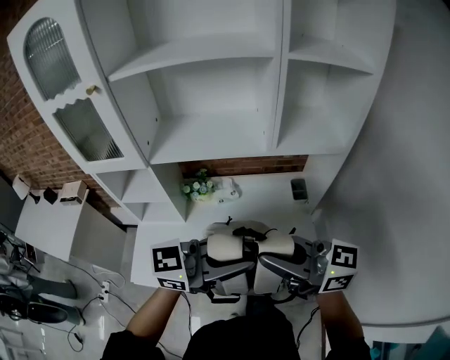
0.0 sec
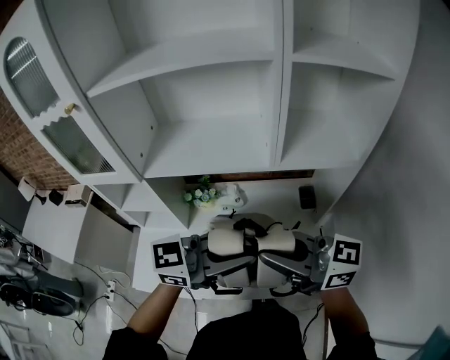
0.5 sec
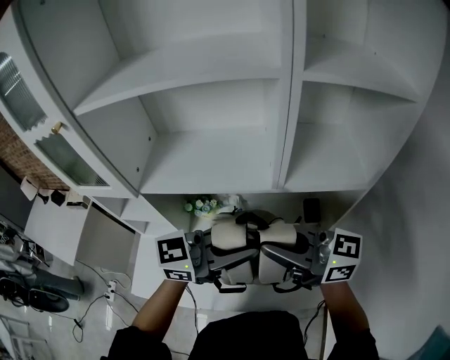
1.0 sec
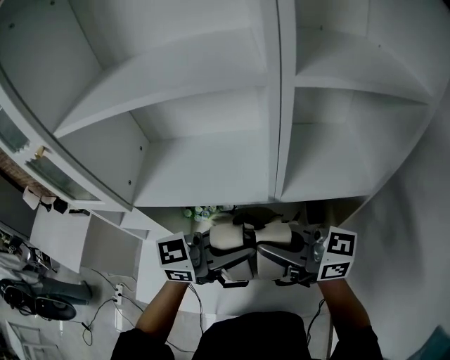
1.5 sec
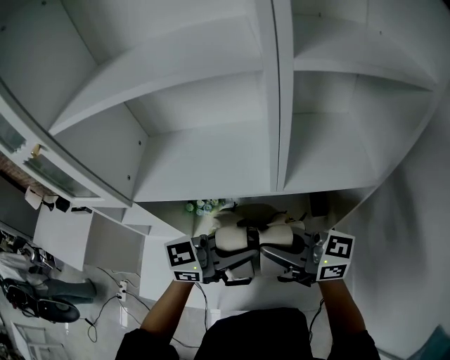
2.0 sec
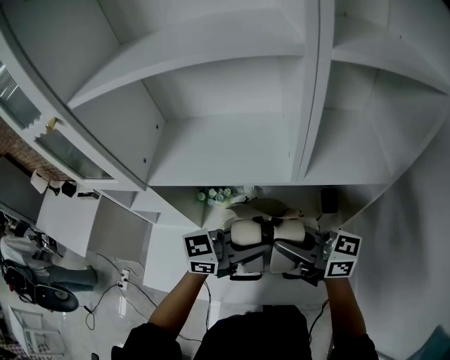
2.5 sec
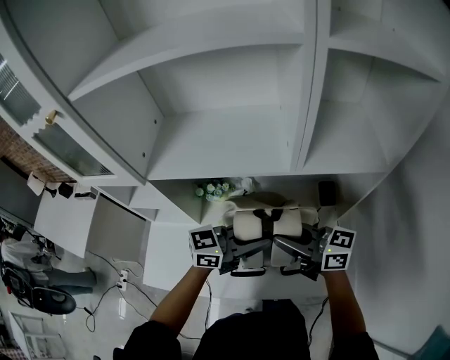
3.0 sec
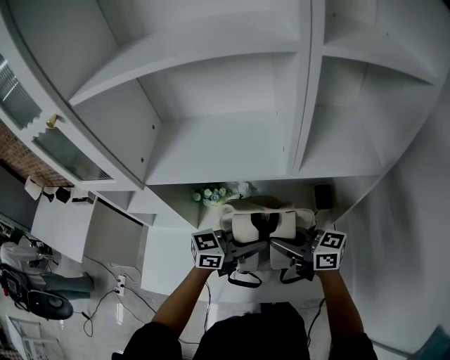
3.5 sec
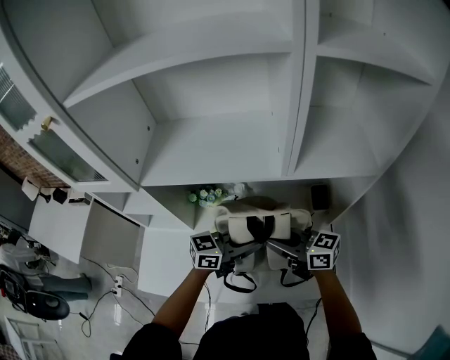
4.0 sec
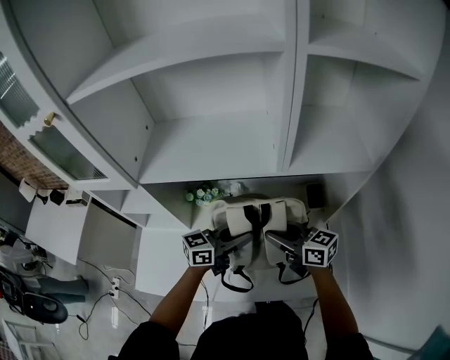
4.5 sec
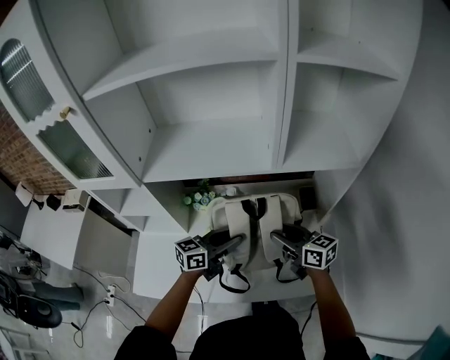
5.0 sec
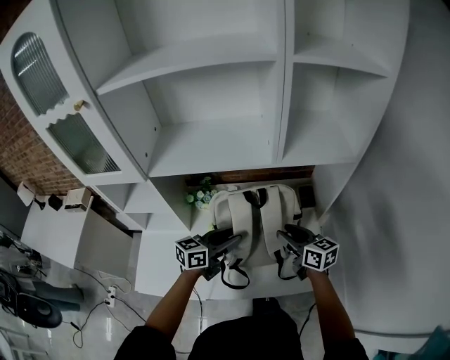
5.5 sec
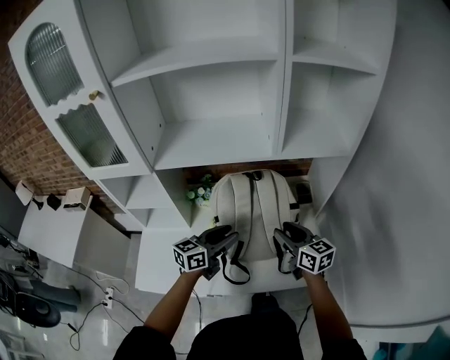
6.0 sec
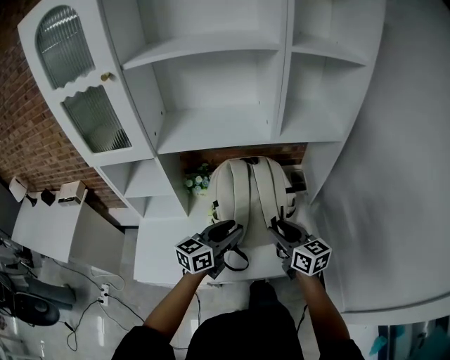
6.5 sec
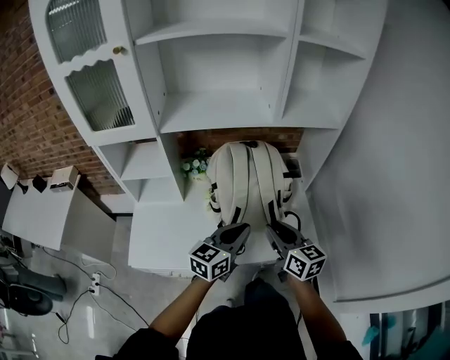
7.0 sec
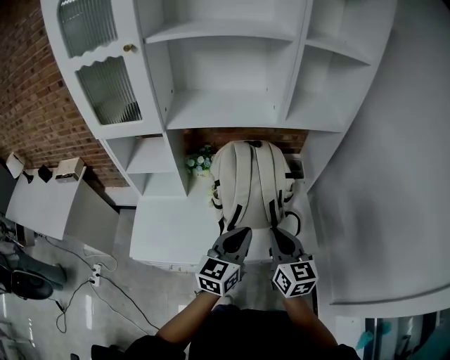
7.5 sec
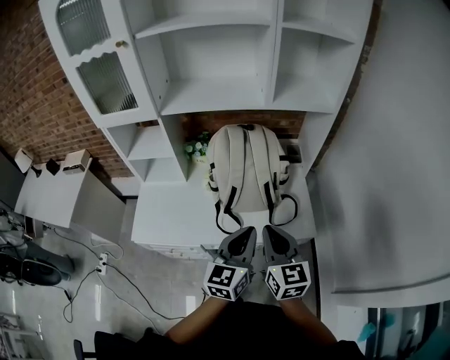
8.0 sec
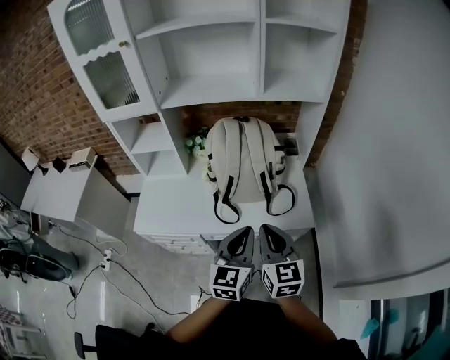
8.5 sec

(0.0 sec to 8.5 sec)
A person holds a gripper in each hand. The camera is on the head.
0.0 sec - 2.0 sec: The left gripper moves roughly 25 cm, while the right gripper moves approximately 20 cm.
2.0 sec - 4.0 sec: The two grippers go approximately 15 cm downward.
4.0 sec - 6.5 sec: The left gripper ends up roughly 15 cm from where it was, changes its angle by some 20 degrees, and opens its fingers. Meanwhile the right gripper ends up approximately 15 cm from where it was, rotates approximately 40 degrees, and opens.
6.5 sec - 8.5 sec: The right gripper shifts about 25 cm backward, and closes. The left gripper moves backward and to the right, approximately 25 cm, turns by some 30 degrees, and closes.

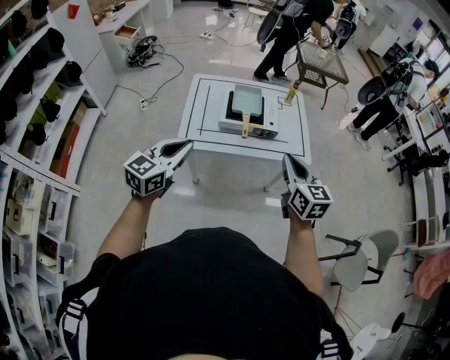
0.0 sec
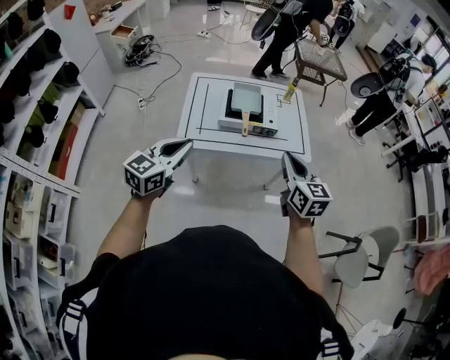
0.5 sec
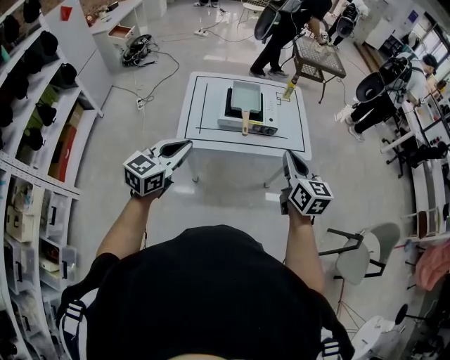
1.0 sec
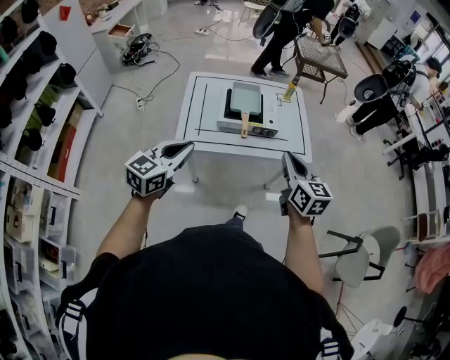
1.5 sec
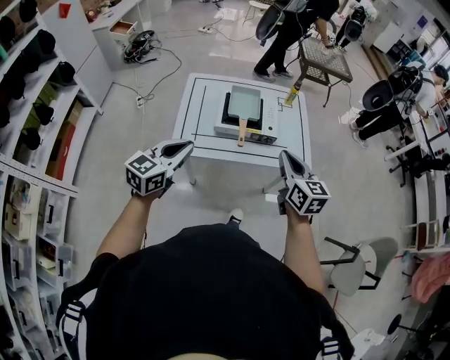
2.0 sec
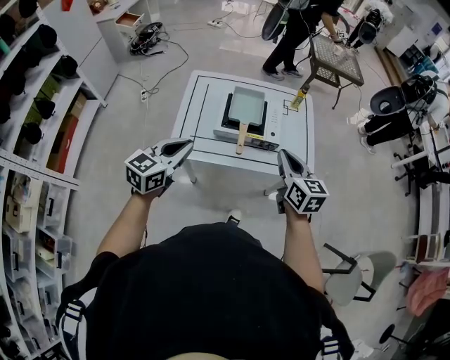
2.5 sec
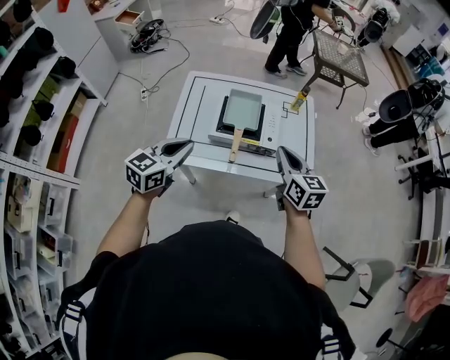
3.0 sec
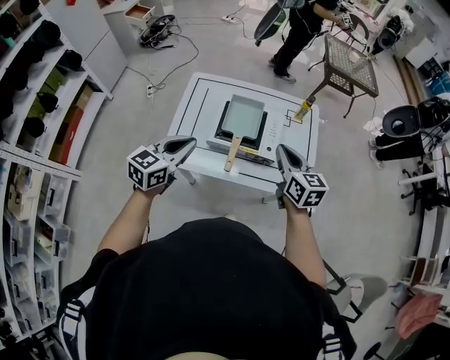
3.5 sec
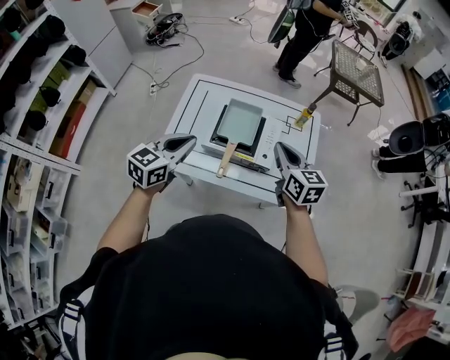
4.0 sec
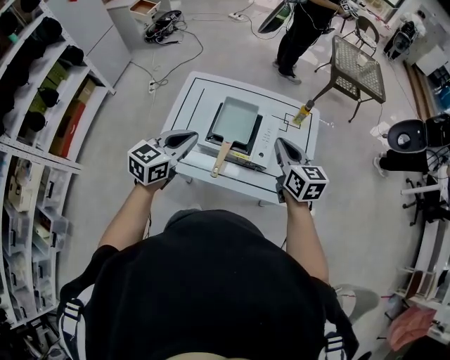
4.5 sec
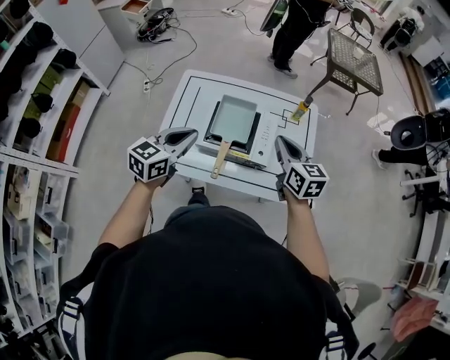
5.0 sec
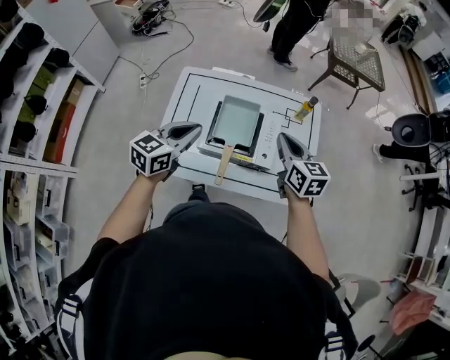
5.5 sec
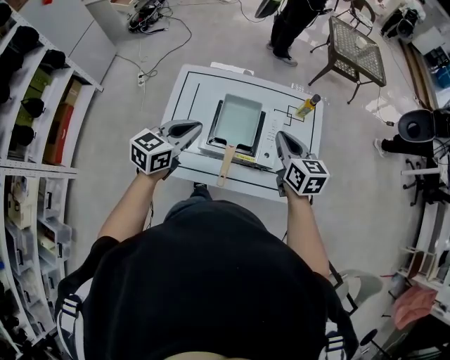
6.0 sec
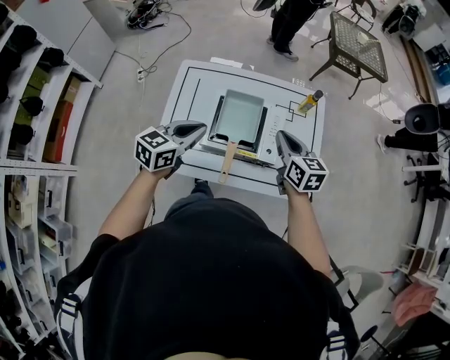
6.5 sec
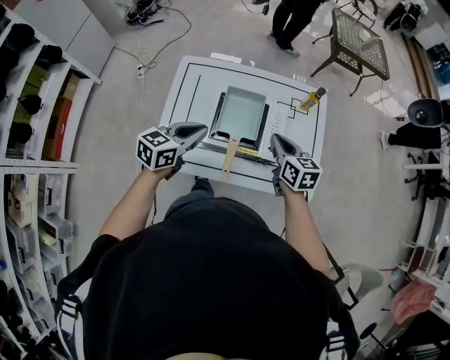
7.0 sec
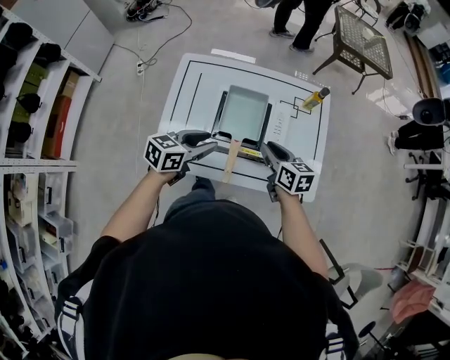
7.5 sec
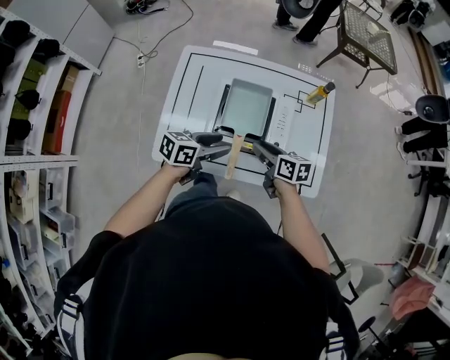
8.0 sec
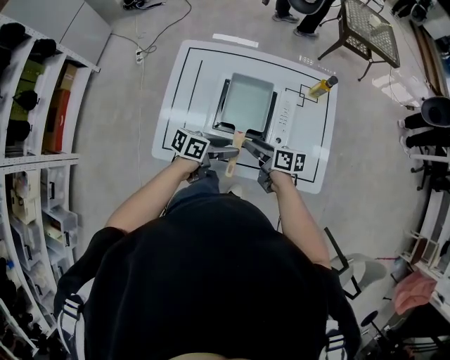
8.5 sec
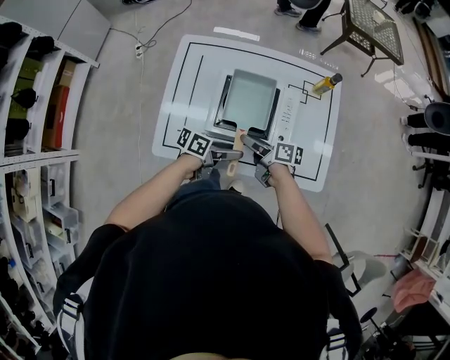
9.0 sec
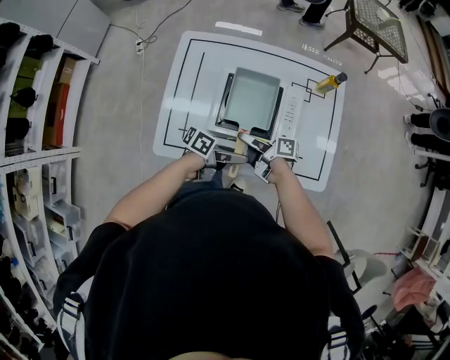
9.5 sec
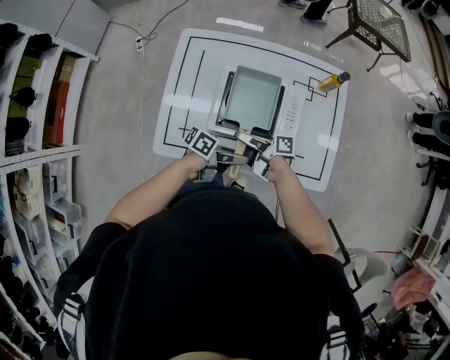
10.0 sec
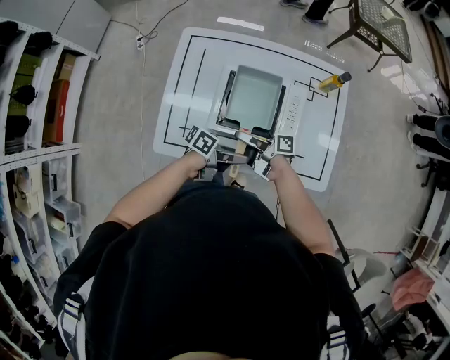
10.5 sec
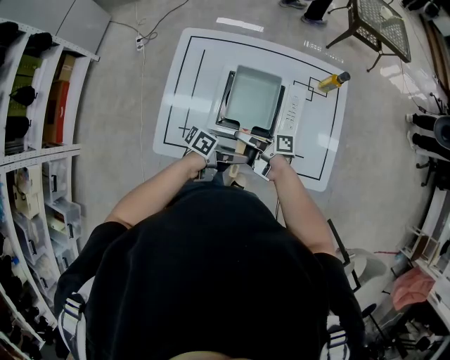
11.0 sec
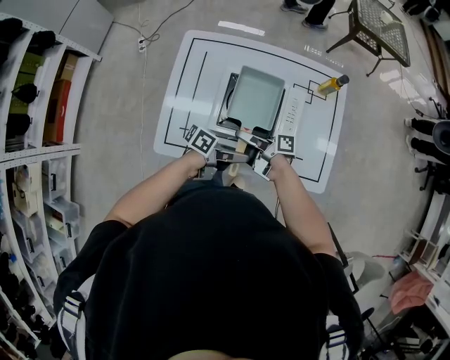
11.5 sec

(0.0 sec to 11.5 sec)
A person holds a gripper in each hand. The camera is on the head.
0.0 sec - 2.0 sec: Both grippers move forward, about 10 cm.
2.0 sec - 4.0 sec: Both grippers travel together forward, roughly 20 cm.
4.0 sec - 6.0 sec: Both grippers move forward, approximately 10 cm.
6.0 sec - 7.5 sec: The two grippers go some 10 cm downward. The left gripper opens; the right gripper opens its fingers.
7.5 sec - 9.5 sec: Both grippers move downward, approximately 10 cm. The left gripper changes its angle by about 50 degrees, and opens its fingers, while the right gripper twists roughly 50 degrees clockwise, seen from behind, and opens its fingers.
9.5 sec - 11.5 sec: The right gripper closes. Meanwhile the left gripper closes.

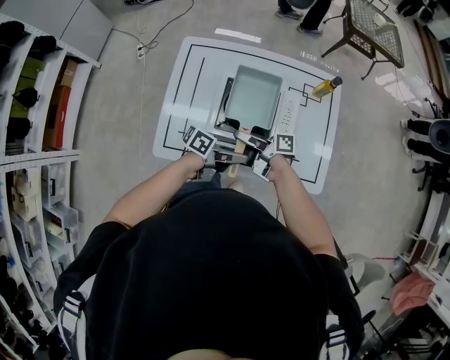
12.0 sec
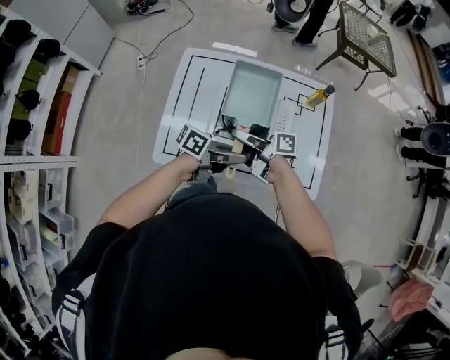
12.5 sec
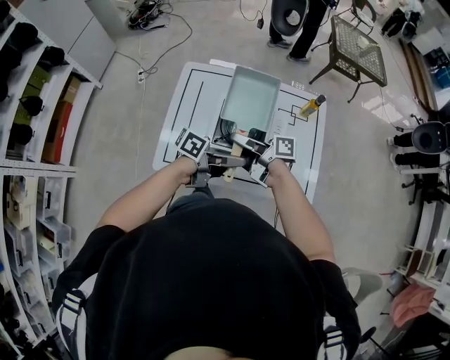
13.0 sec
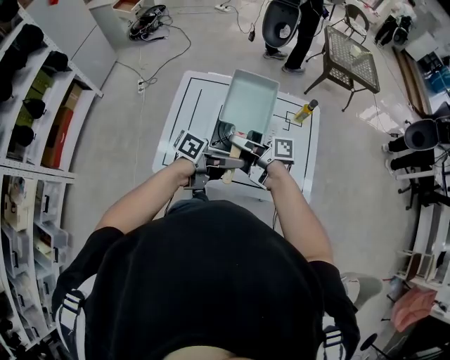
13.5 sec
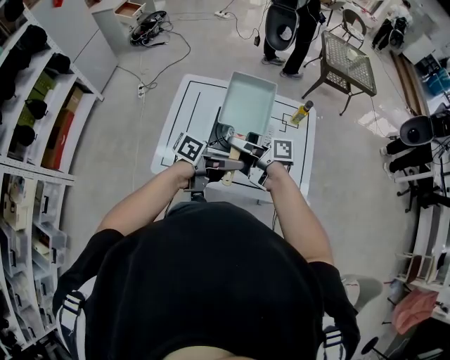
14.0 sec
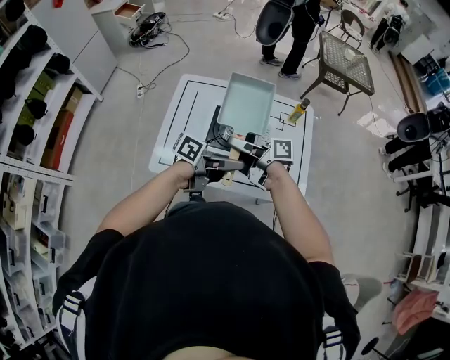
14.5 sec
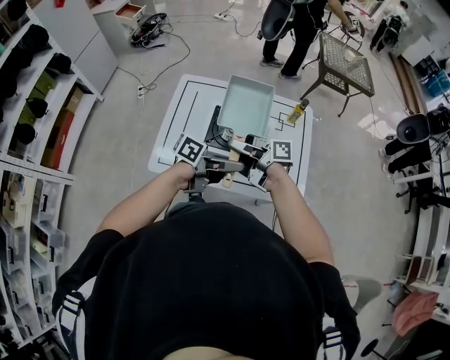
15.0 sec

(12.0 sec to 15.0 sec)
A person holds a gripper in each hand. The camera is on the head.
12.0 sec - 13.5 sec: The two grippers go roughly 15 cm upward.
13.5 sec - 15.0 sec: There are only small adjustments of the grippers.

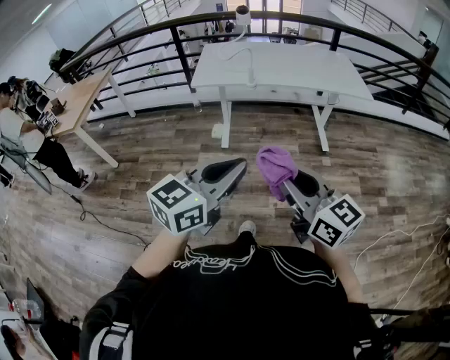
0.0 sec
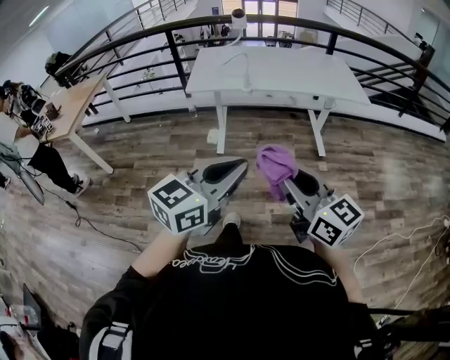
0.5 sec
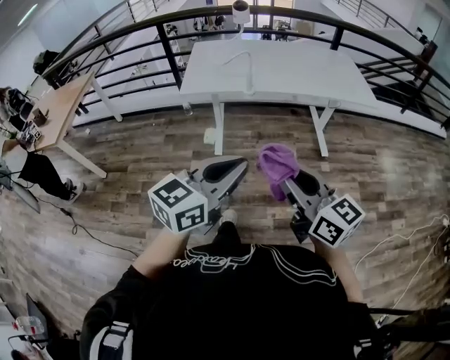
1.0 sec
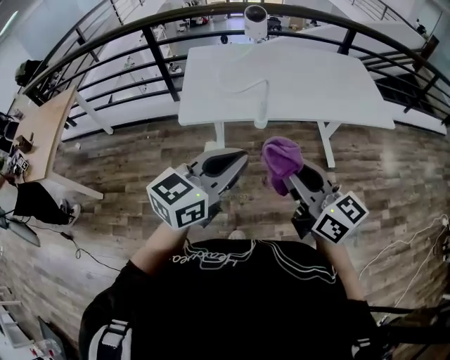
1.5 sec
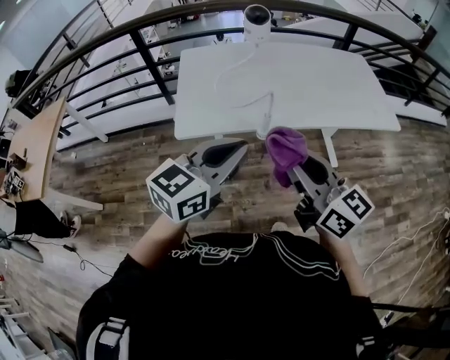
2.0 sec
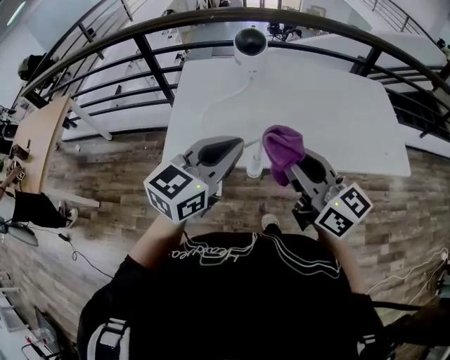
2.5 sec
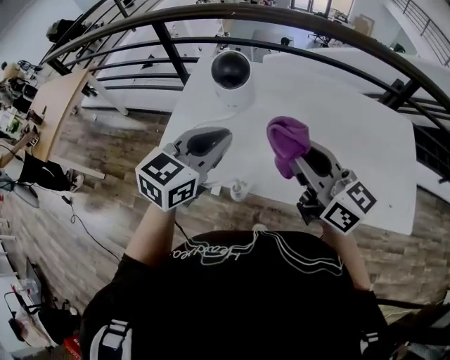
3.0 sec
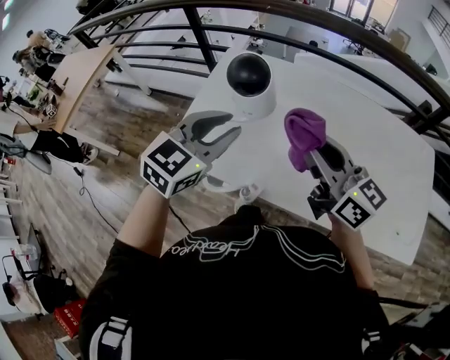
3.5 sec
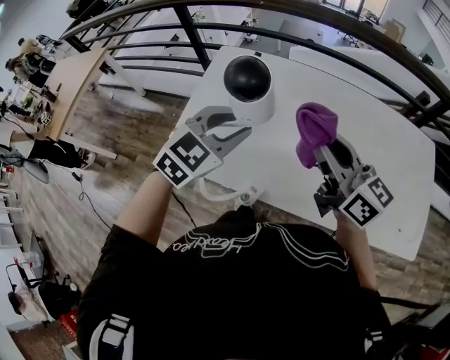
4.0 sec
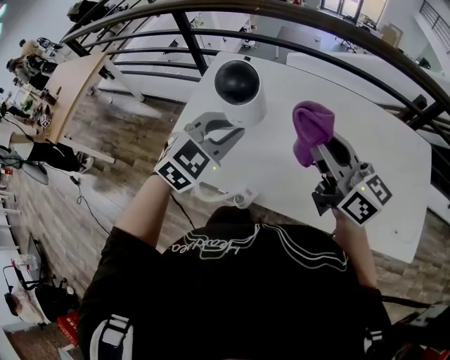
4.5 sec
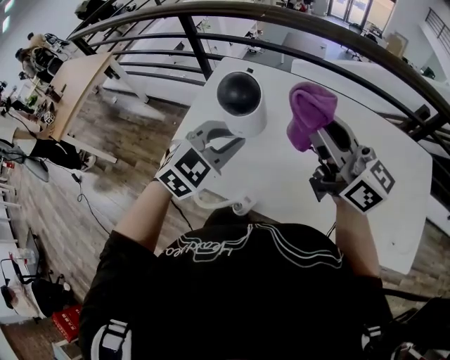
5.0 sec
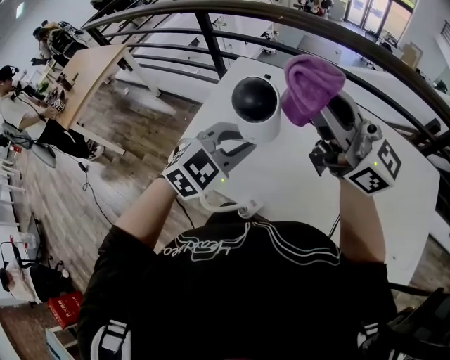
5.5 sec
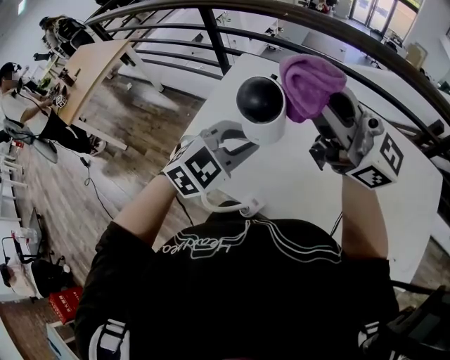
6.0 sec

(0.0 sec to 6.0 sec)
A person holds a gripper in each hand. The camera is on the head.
0.0 sec - 2.0 sec: Both grippers are carried forward, approximately 50 cm.
2.0 sec - 4.0 sec: The left gripper changes place by approximately 35 cm, swivels approximately 40 degrees, and opens. The right gripper moves about 40 cm, and changes its angle by some 20 degrees.
4.0 sec - 6.0 sec: The right gripper goes about 15 cm upward and to the left, and swivels some 40 degrees.
